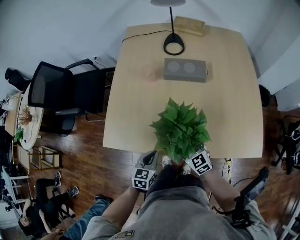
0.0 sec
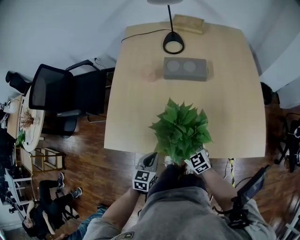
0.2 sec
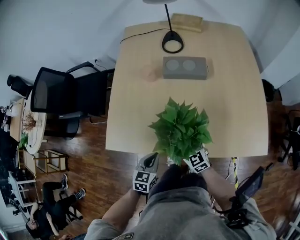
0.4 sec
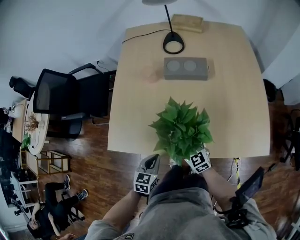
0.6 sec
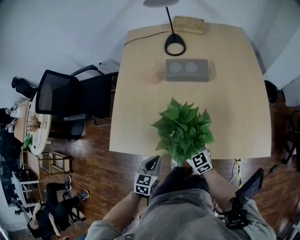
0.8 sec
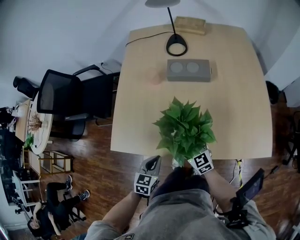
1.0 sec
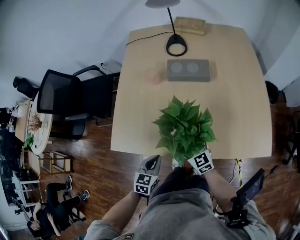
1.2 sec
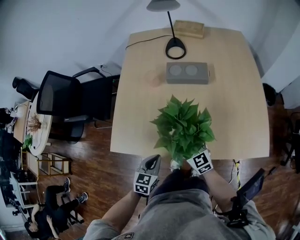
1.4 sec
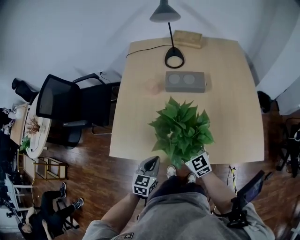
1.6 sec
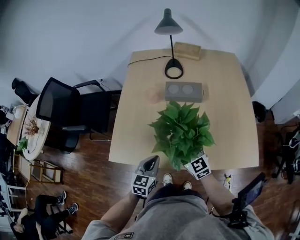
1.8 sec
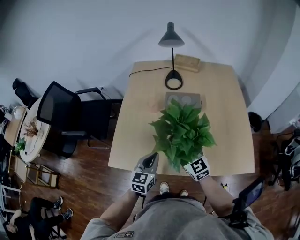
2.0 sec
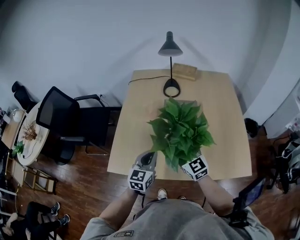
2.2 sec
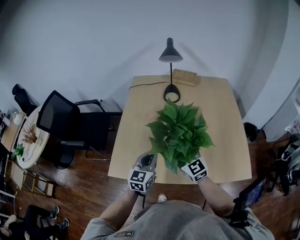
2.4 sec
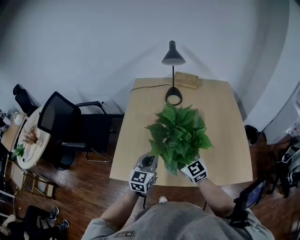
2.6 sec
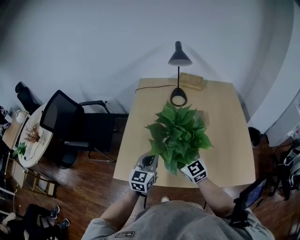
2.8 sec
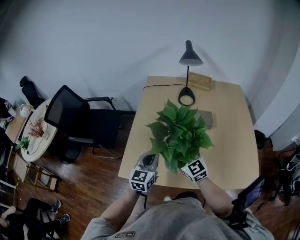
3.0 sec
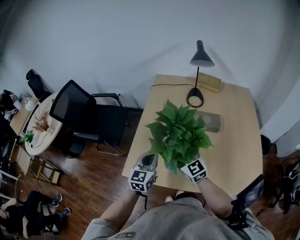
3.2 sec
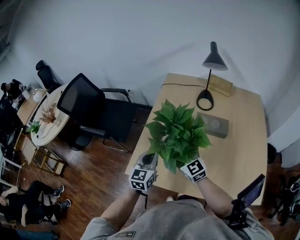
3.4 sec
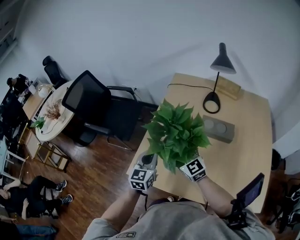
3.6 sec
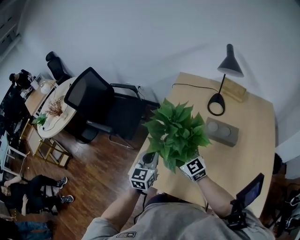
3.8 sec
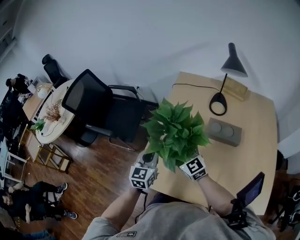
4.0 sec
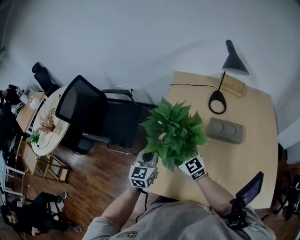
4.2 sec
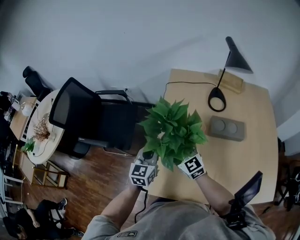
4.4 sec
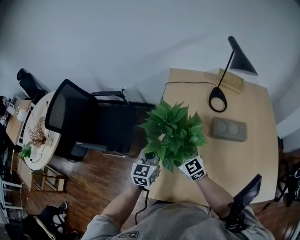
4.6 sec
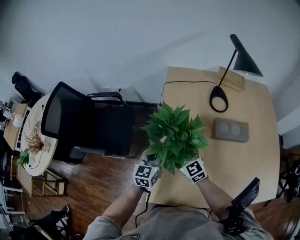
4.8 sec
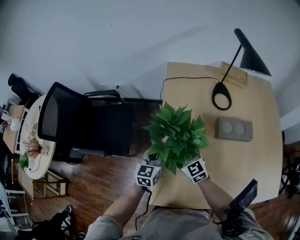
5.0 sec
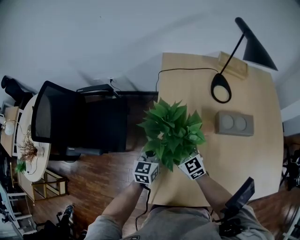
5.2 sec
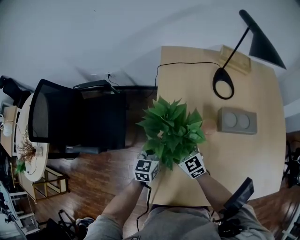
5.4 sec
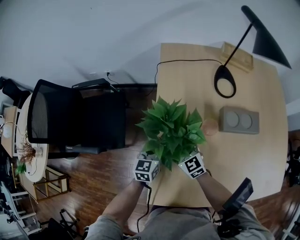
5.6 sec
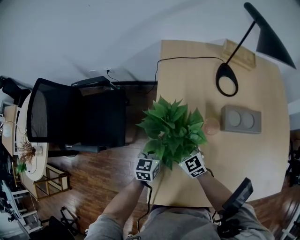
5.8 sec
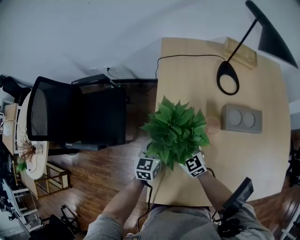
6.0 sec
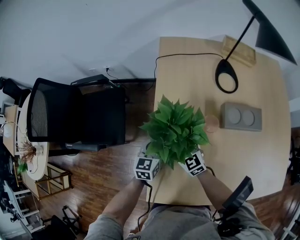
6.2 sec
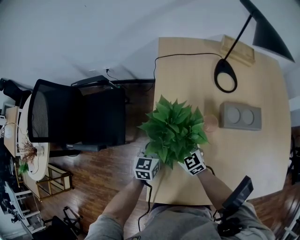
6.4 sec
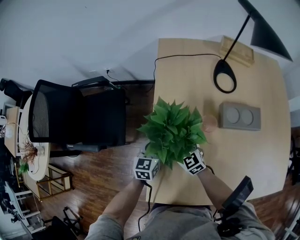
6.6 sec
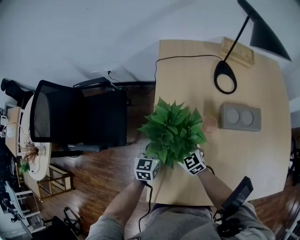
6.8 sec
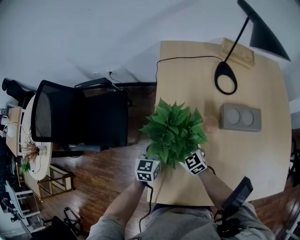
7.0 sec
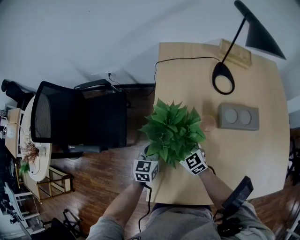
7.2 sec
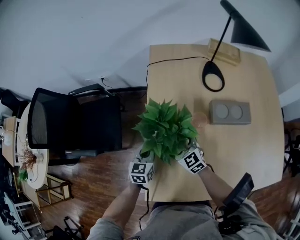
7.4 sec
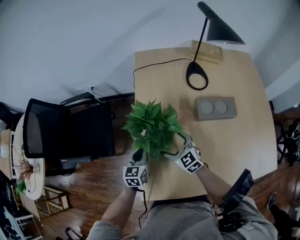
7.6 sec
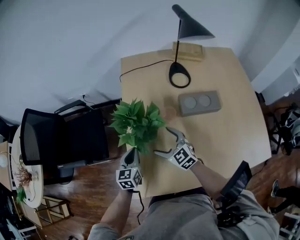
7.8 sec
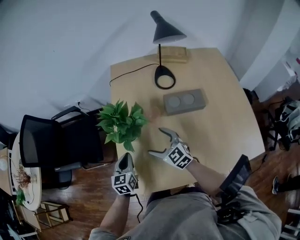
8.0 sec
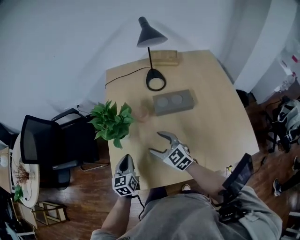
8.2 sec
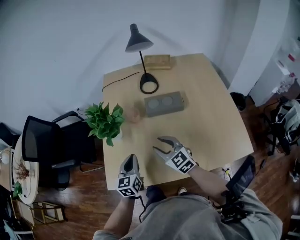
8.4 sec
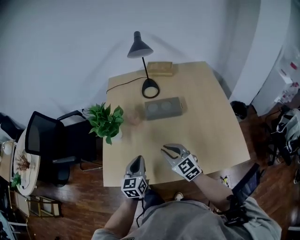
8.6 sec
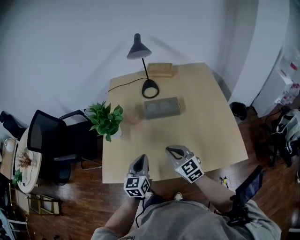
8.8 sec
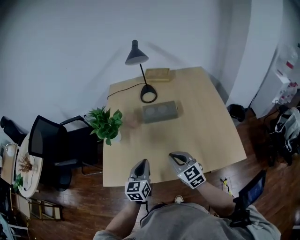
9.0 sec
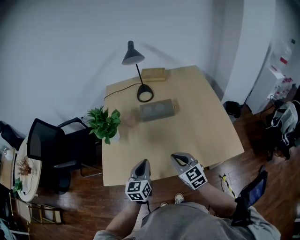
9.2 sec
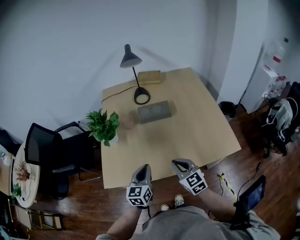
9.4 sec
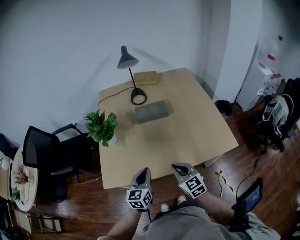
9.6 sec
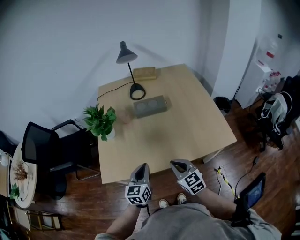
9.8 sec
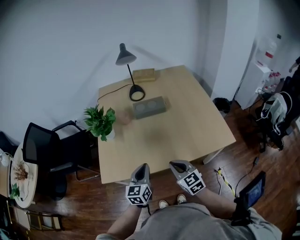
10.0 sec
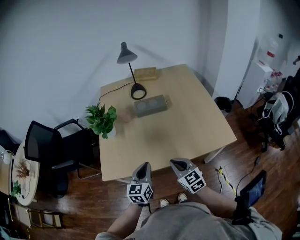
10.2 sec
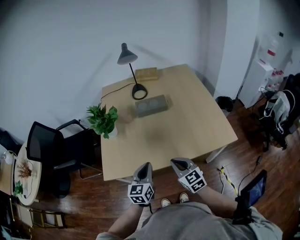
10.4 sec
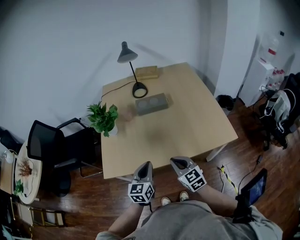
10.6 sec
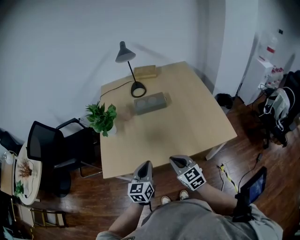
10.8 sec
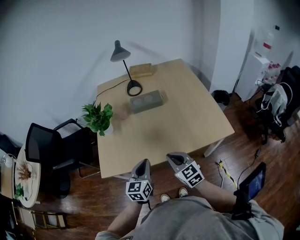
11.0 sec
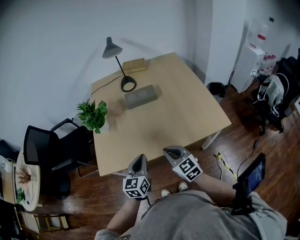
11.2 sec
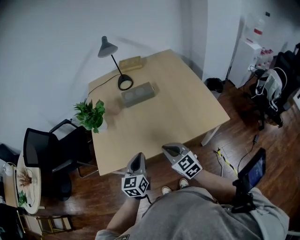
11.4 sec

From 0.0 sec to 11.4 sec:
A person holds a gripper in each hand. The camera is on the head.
From 0.0 sec to 1.4 sec: There are only small adjustments of the grippers.
From 1.4 sec to 2.8 sec: The two grippers go roughly 20 cm upward and forward. The left gripper swivels about 30 degrees.
From 2.8 sec to 4.2 sec: Both grippers move forward and to the left, roughly 20 cm.
From 4.2 sec to 5.6 sec: The two grippers go roughly 20 cm downward and forward.
From 5.6 sec to 7.2 sec: The grippers stay close to where they were, moving slightly.
From 7.2 sec to 8.6 sec: Both grippers move backward, to the right and upward, roughly 35 cm. The right gripper closes.
From 8.6 sec to 10.0 sec: The grippers both shift backward by some 15 cm.
From 10.0 sec to 11.4 sec: There are only small adjustments of the grippers.

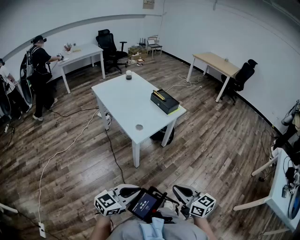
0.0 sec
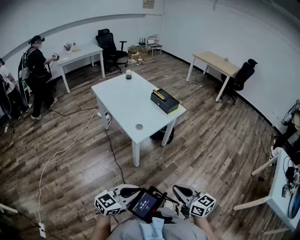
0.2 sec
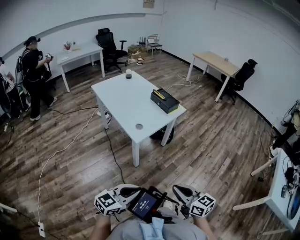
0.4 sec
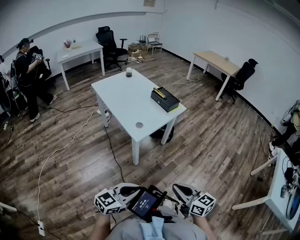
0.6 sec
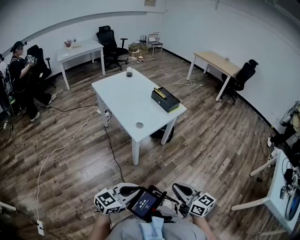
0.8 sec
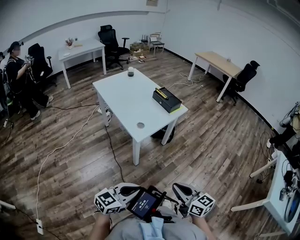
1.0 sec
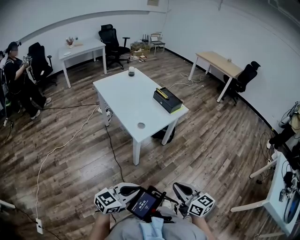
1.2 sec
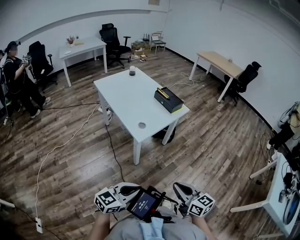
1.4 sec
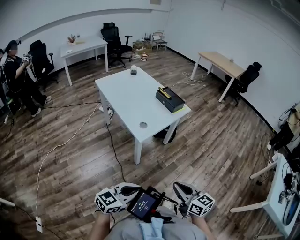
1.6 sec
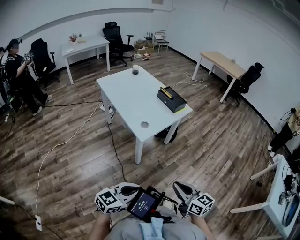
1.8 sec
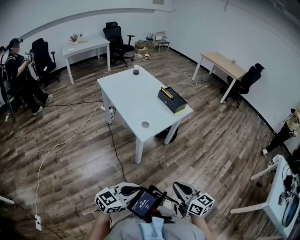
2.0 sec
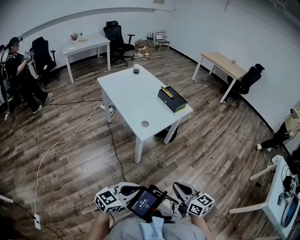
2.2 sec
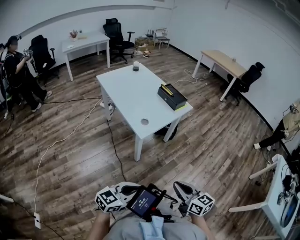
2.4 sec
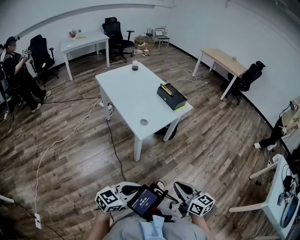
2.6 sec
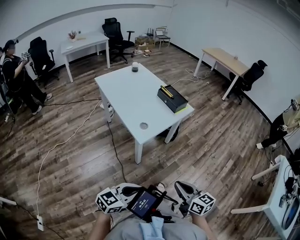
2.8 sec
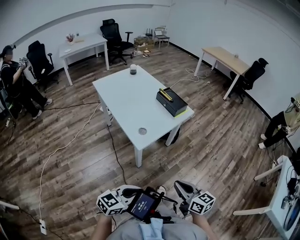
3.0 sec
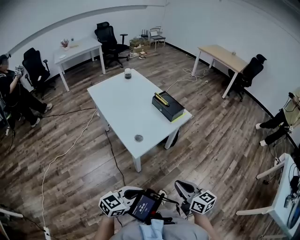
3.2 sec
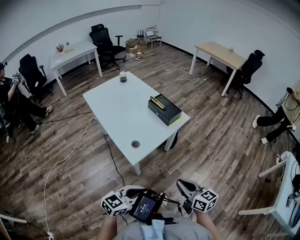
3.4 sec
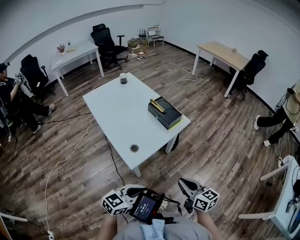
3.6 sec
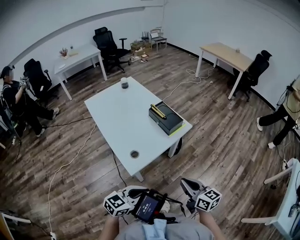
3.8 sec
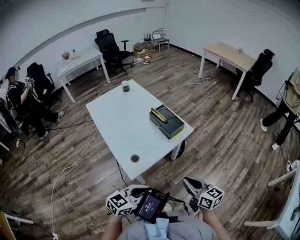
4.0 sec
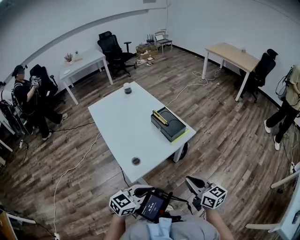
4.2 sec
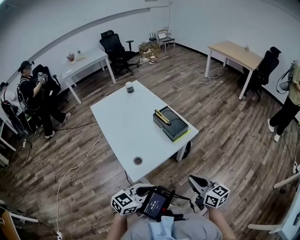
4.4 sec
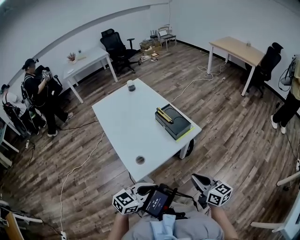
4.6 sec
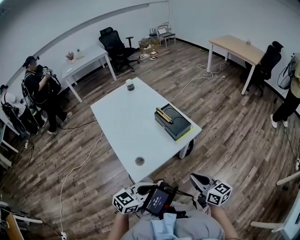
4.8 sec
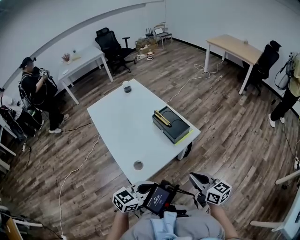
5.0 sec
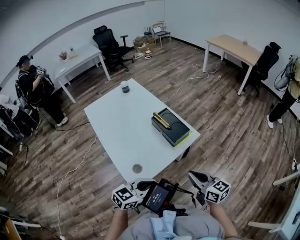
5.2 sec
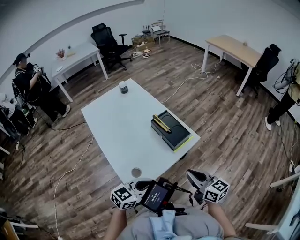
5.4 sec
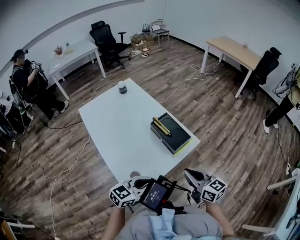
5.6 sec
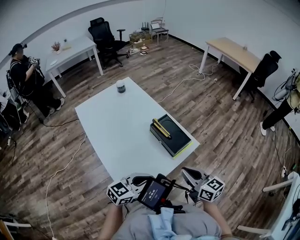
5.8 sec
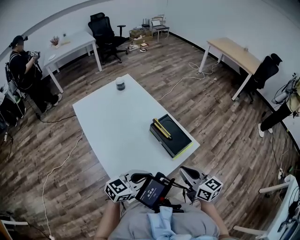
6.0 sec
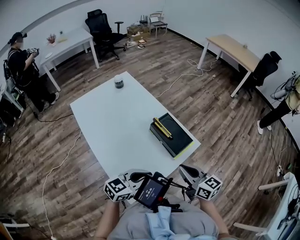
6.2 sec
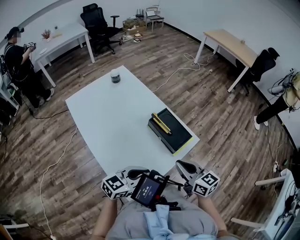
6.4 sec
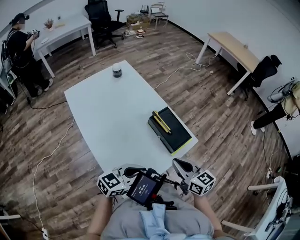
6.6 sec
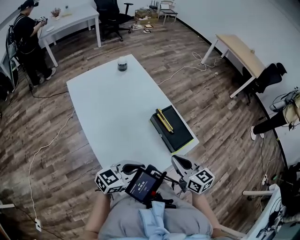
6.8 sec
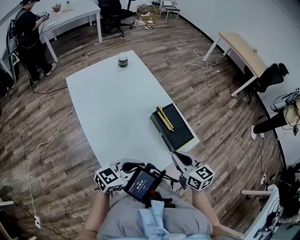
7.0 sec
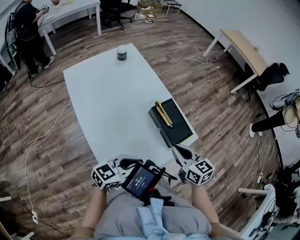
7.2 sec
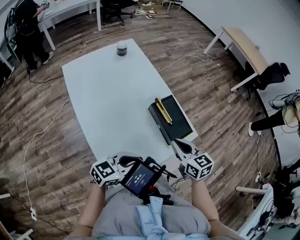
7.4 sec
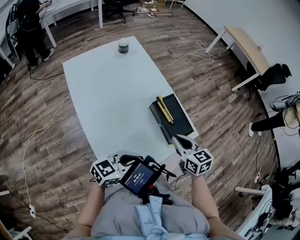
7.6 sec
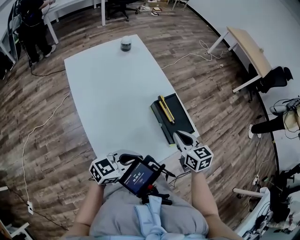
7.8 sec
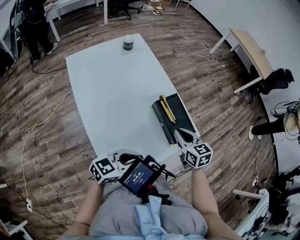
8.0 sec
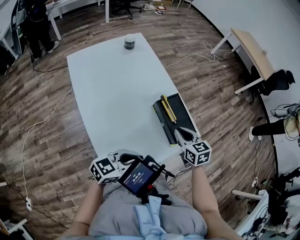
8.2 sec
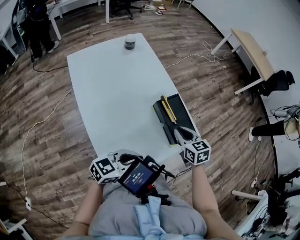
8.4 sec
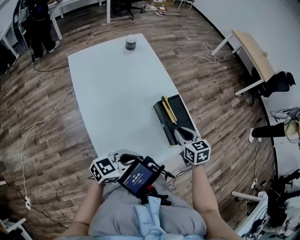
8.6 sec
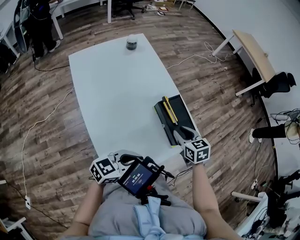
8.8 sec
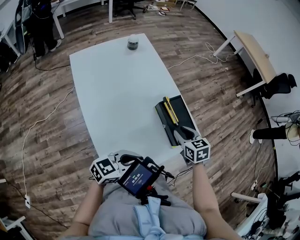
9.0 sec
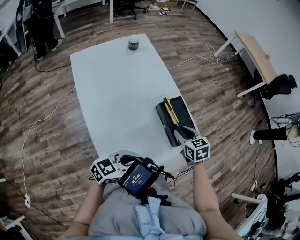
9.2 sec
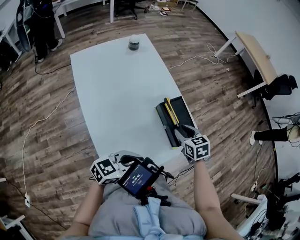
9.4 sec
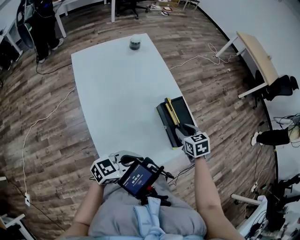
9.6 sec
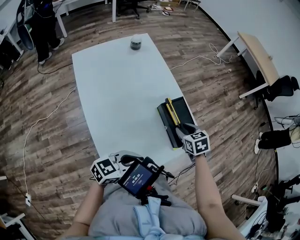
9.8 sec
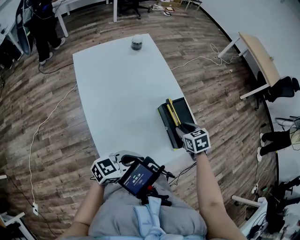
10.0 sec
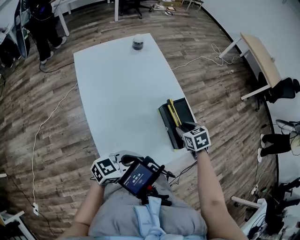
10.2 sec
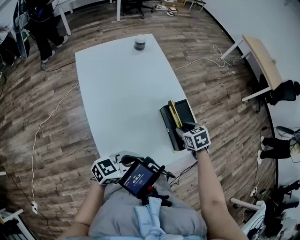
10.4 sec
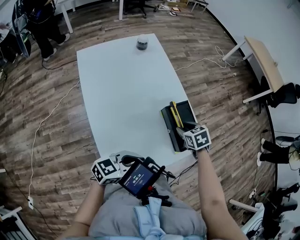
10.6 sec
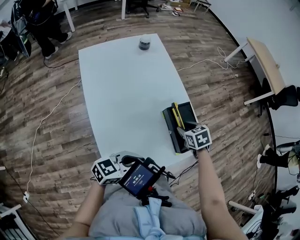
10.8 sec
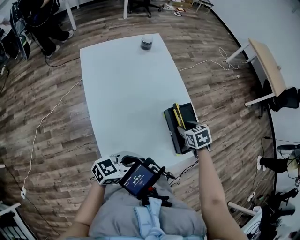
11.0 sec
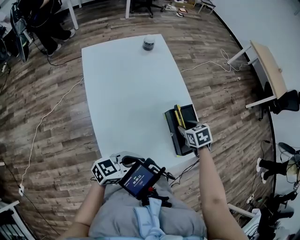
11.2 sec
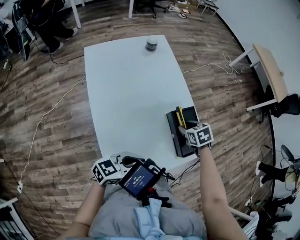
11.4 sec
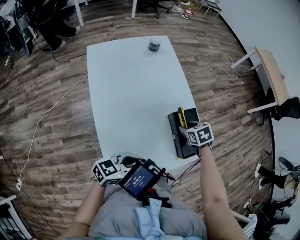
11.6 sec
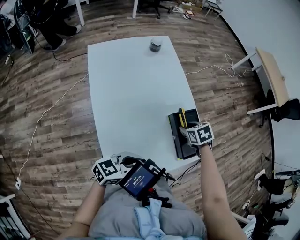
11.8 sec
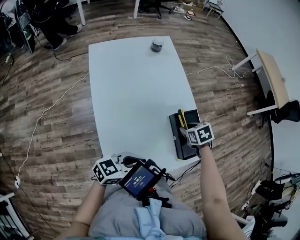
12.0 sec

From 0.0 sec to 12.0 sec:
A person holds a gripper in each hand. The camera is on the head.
From 0.0 sec to 1.6 sec: The grippers stay close to where they were, moving slightly.
From 1.6 sec to 3.0 sec: Both grippers move forward, roughly 10 cm.
From 3.0 sec to 4.4 sec: The grippers both shift forward by roughly 25 cm.
From 4.4 sec to 6.0 sec: The right gripper shifts roughly 20 cm forward and to the left. Meanwhile the left gripper shifts about 20 cm forward.
From 6.0 sec to 7.6 sec: The right gripper is displaced forward by some 10 cm, and swivels roughly 20 degrees.
From 7.6 sec to 9.0 sec: The right gripper goes approximately 5 cm forward and downward.
From 9.0 sec to 10.4 sec: The right gripper ends up about 5 cm from where it was.
From 10.4 sec to 12.0 sec: The right gripper shifts by approximately 5 cm.

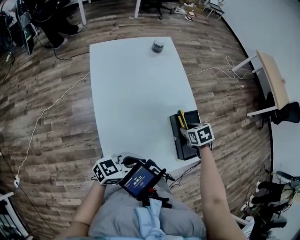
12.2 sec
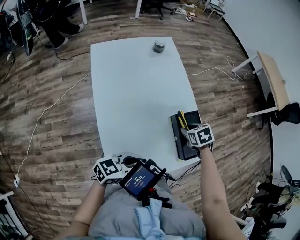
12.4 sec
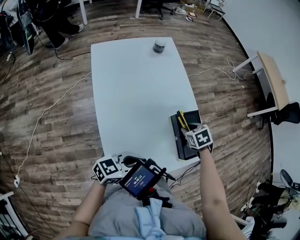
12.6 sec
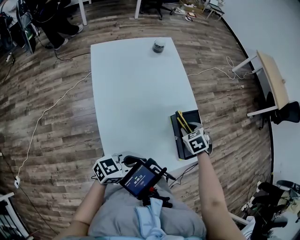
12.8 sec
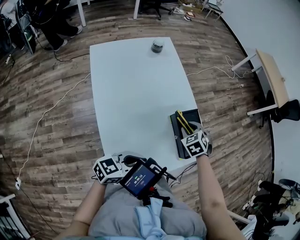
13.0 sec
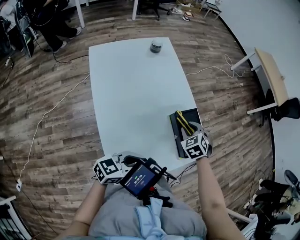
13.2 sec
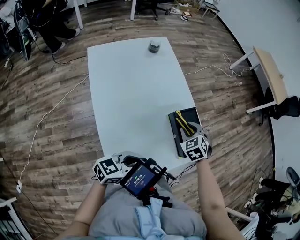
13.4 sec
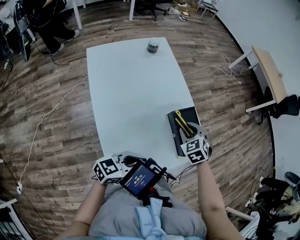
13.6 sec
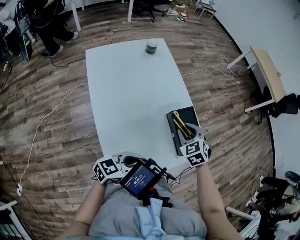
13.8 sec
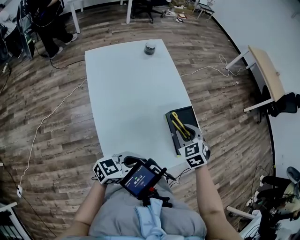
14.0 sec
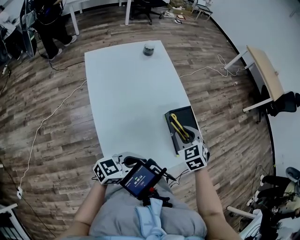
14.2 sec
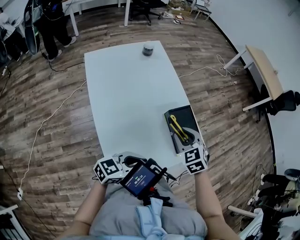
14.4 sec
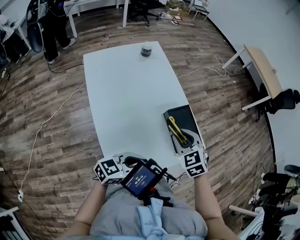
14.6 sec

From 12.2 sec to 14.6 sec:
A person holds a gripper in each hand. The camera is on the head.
From 12.2 sec to 13.4 sec: The right gripper swivels about 30 degrees.
From 13.4 sec to 14.6 sec: The right gripper shifts about 10 cm upward and backward.
